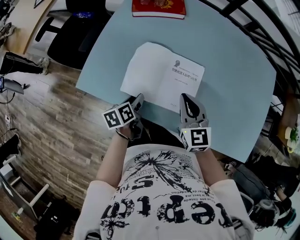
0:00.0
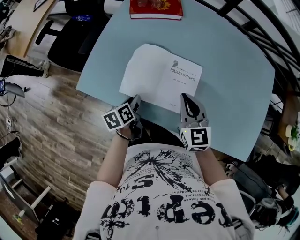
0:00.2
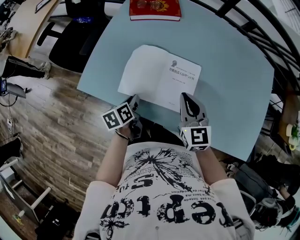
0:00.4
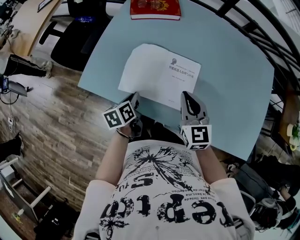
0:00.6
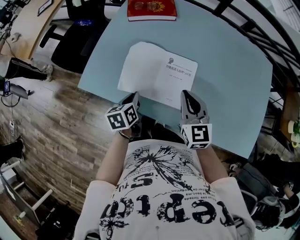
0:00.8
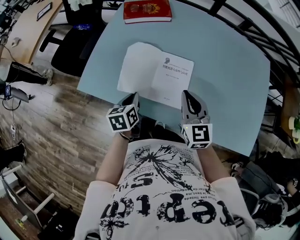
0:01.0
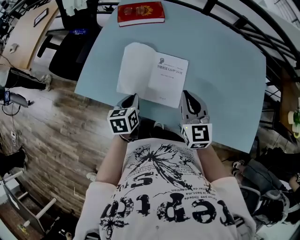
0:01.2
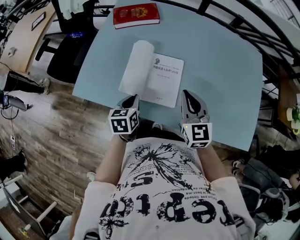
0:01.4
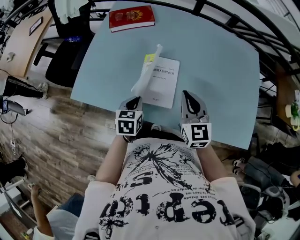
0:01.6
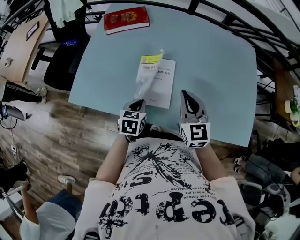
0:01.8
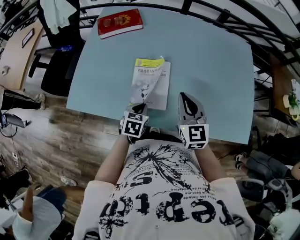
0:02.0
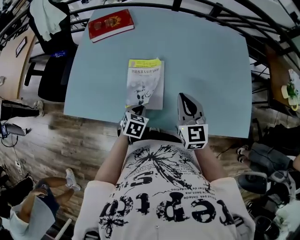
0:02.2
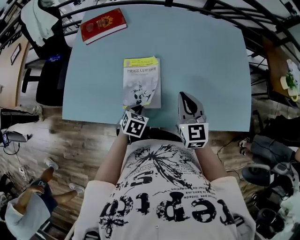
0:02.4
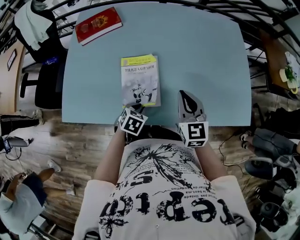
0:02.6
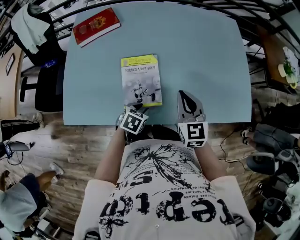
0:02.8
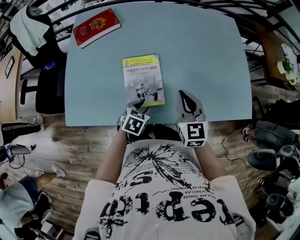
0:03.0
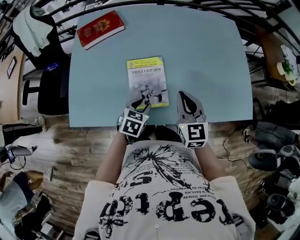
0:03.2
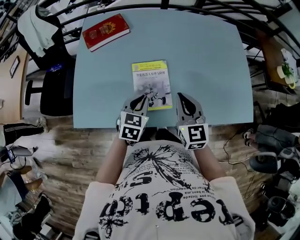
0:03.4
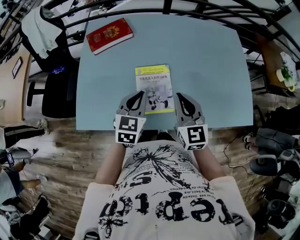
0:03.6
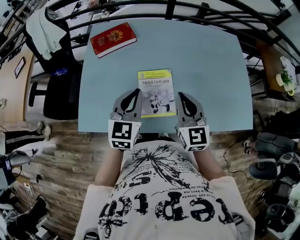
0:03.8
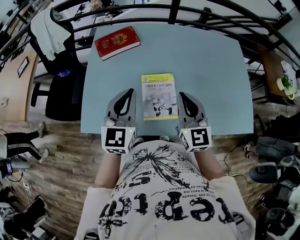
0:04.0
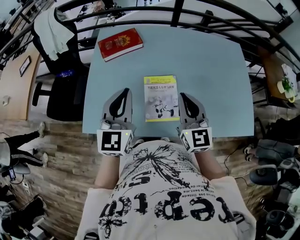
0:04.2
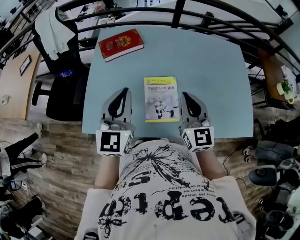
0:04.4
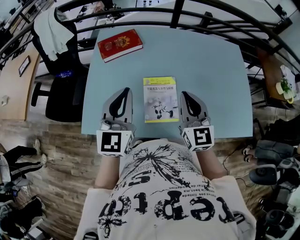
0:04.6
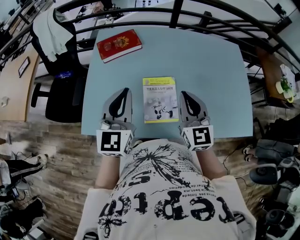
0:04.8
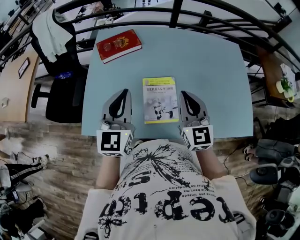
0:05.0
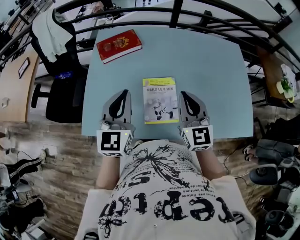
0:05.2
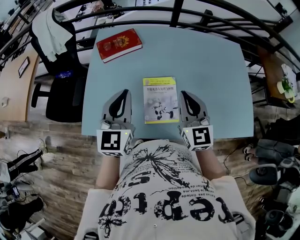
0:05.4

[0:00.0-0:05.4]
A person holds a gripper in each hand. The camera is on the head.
0:00.0 to 0:01.4: The left gripper shifts about 10 cm upward and to the right, turns by roughly 30 degrees, and closes up, while the right gripper travels to the right by approximately 10 cm.
0:01.4 to 0:02.8: The right gripper changes place by about 5 cm. The left gripper changes place by approximately 15 cm, rotates about 50 degrees, and opens its fingers.
0:02.8 to 0:04.0: The right gripper goes approximately 15 cm upward and to the left. The left gripper goes some 35 cm upward and to the left, points its fingers roughly 50 degrees further upward, and closes.
0:04.0 to 0:05.4: The grippers make only small movements.

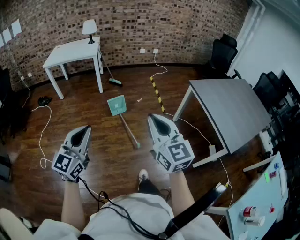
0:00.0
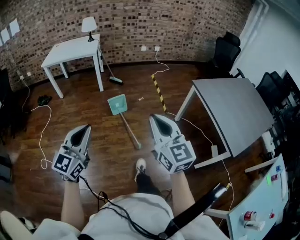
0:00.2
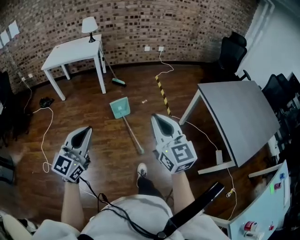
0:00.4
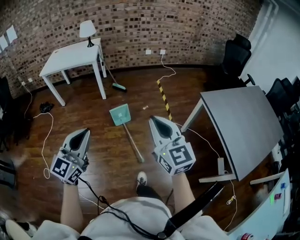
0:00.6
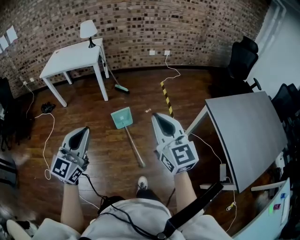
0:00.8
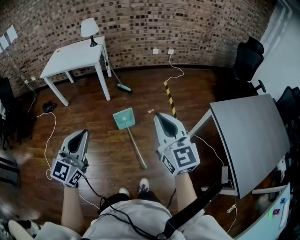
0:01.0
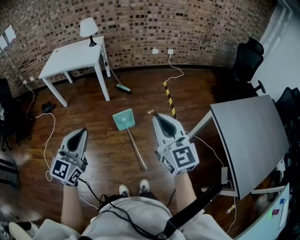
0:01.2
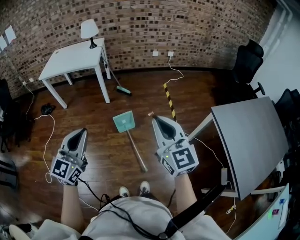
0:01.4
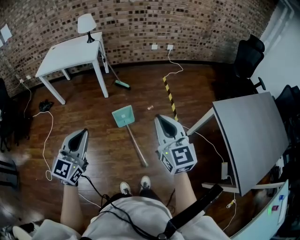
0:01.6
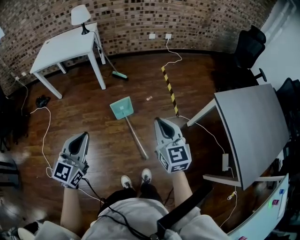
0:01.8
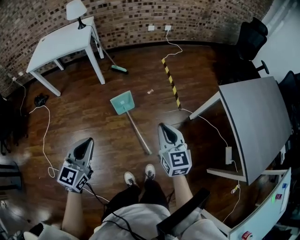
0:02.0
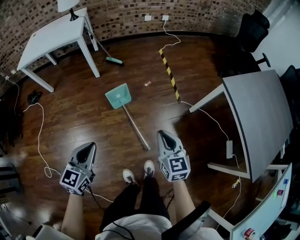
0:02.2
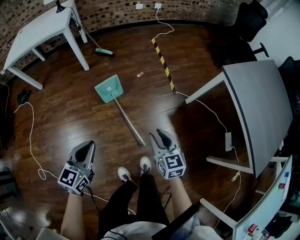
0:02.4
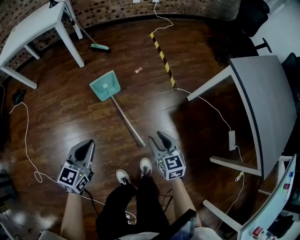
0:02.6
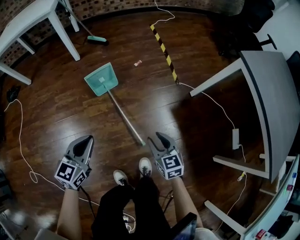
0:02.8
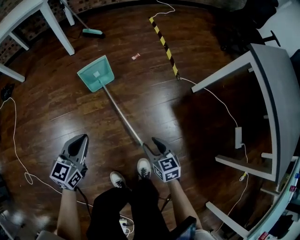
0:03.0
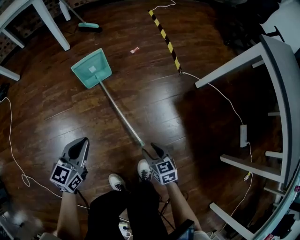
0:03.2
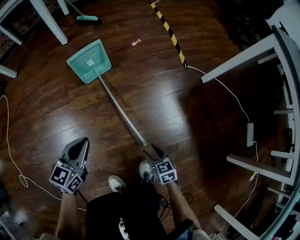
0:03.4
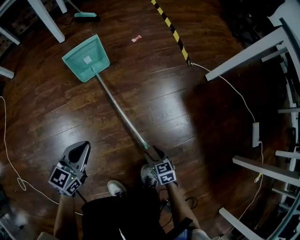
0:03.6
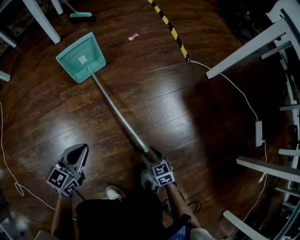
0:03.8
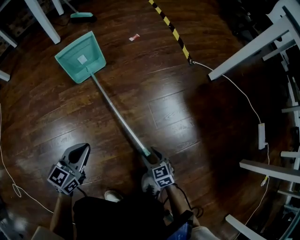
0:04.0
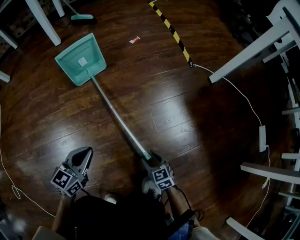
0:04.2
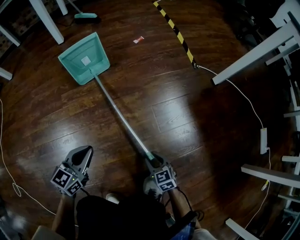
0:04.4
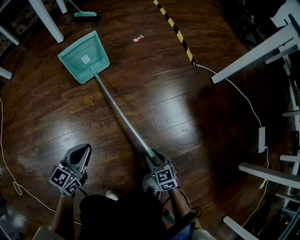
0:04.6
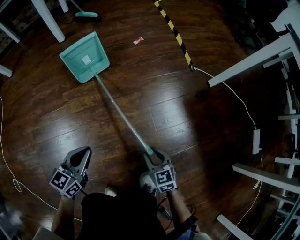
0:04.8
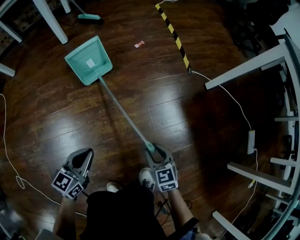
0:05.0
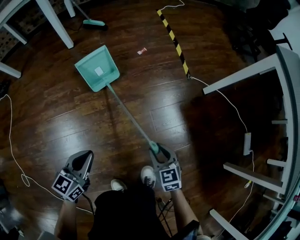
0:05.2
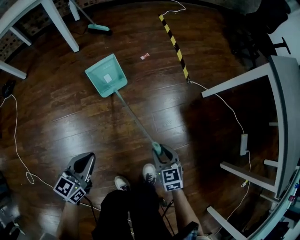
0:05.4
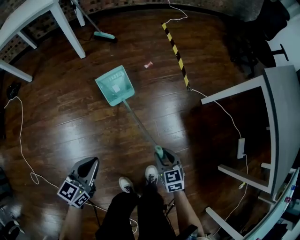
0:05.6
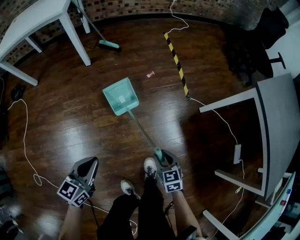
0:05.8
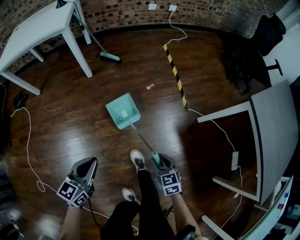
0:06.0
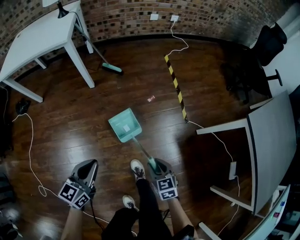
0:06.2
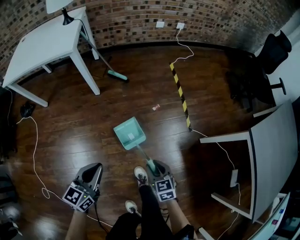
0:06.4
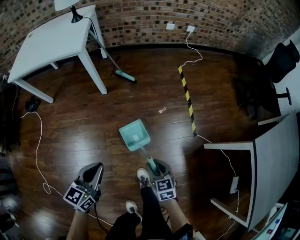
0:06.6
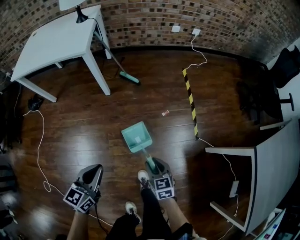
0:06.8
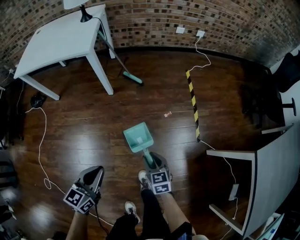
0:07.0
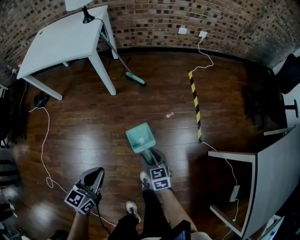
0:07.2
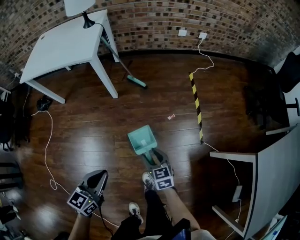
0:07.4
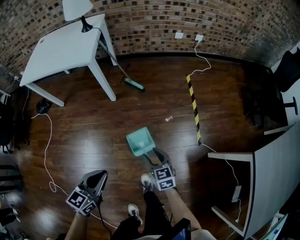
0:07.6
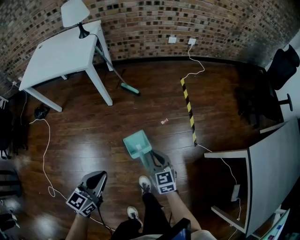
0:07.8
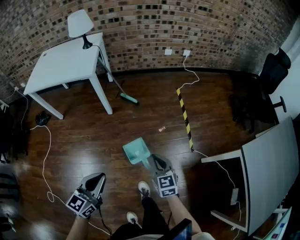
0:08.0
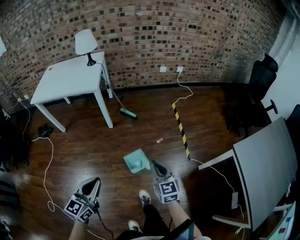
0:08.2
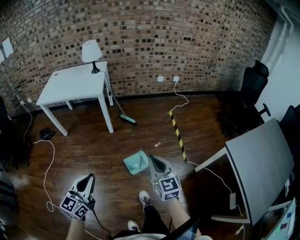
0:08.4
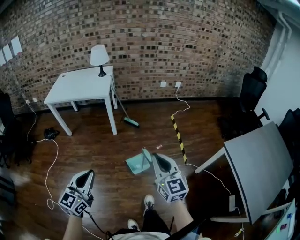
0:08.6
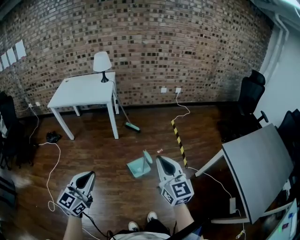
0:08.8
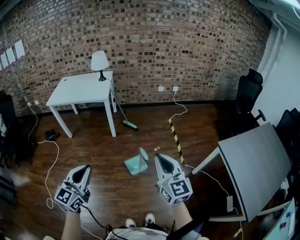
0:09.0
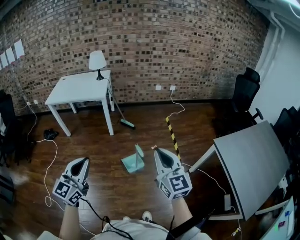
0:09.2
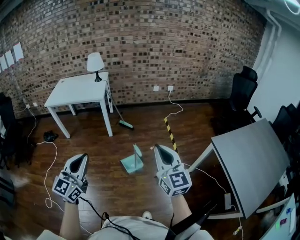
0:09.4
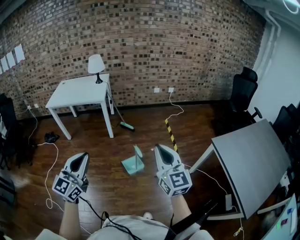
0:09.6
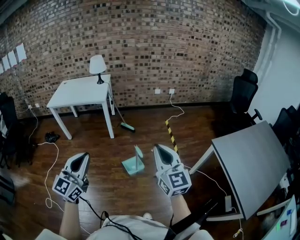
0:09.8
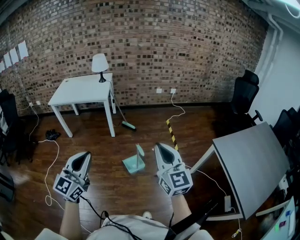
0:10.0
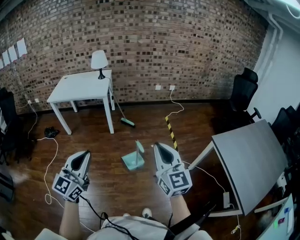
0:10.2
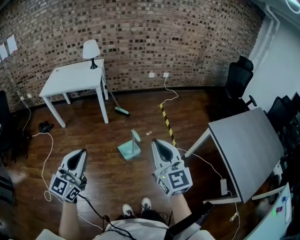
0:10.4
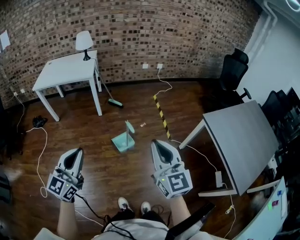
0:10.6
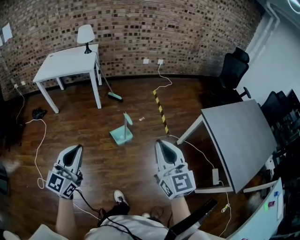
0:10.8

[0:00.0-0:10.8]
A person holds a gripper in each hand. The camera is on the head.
0:00.0 to 0:01.6: Both grippers move forward, about 35 cm.
0:01.6 to 0:03.0: The grippers both shift downward by some 60 cm. The right gripper points its fingers roughly 40 degrees further downward, and opens. The left gripper turns by about 30 degrees.
0:03.0 to 0:04.6: The two grippers go roughly 30 cm downward.
0:04.6 to 0:06.2: The left gripper travels upward by some 50 cm. The right gripper is displaced upward and forward by roughly 50 cm.
0:06.2 to 0:07.8: The right gripper moves forward and upward, about 20 cm, and closes up; the left gripper heads upward, covering some 10 cm.
0:07.8 to 0:09.2: The two grippers go approximately 40 cm upward and backward. The left gripper changes its angle by about 30 degrees, while the right gripper tilts its fingers about 30 degrees upward.
0:09.2 to 0:10.8: Both grippers travel together backward, about 10 cm.

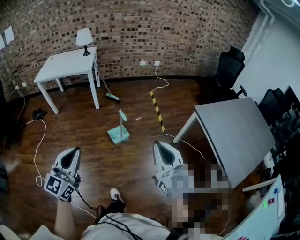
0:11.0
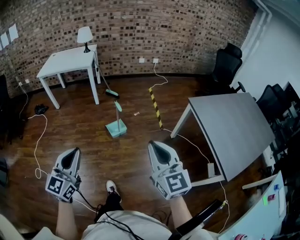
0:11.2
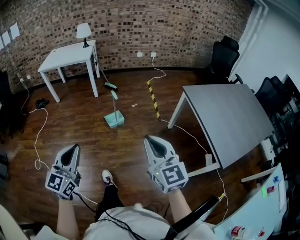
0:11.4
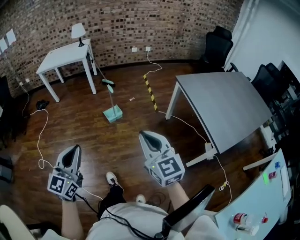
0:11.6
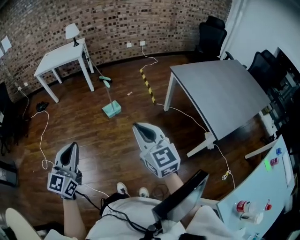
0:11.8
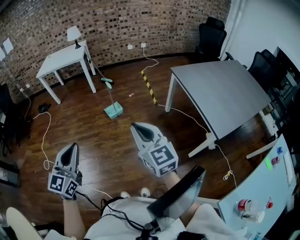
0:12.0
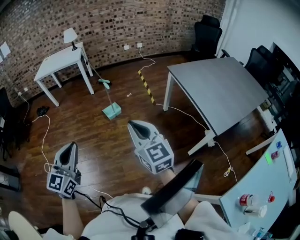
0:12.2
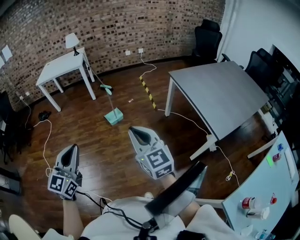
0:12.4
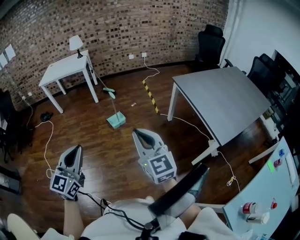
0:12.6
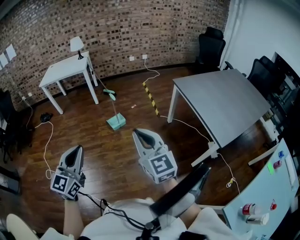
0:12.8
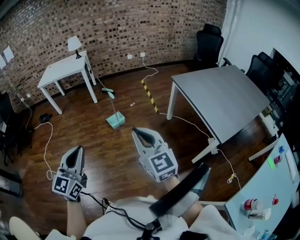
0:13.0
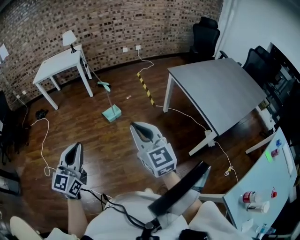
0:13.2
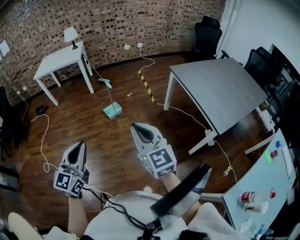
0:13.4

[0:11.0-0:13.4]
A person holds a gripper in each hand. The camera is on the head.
0:11.0 to 0:12.2: The right gripper is displaced backward by about 25 cm. The left gripper goes roughly 35 cm backward and to the right.
0:12.2 to 0:13.4: The grippers move only a little.

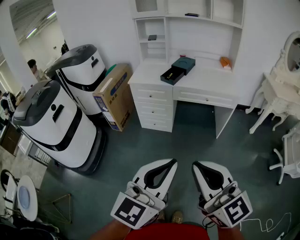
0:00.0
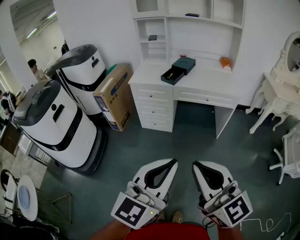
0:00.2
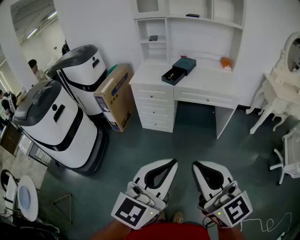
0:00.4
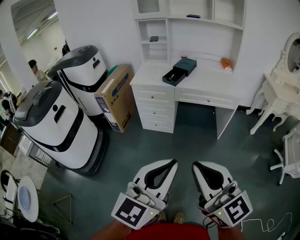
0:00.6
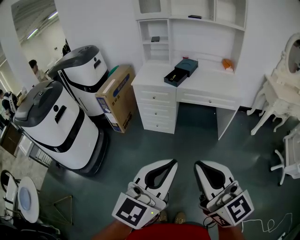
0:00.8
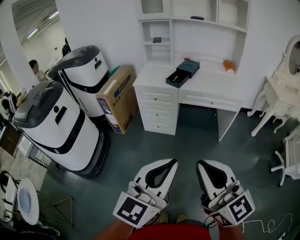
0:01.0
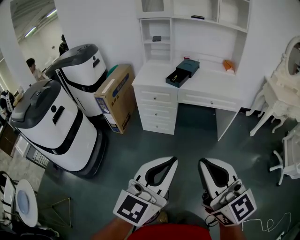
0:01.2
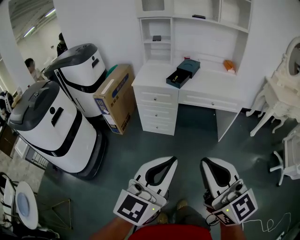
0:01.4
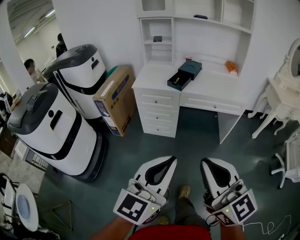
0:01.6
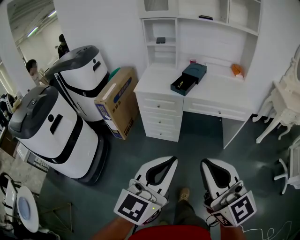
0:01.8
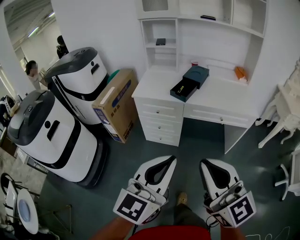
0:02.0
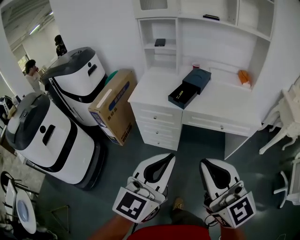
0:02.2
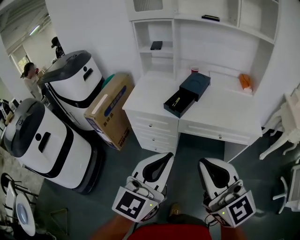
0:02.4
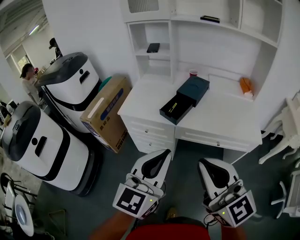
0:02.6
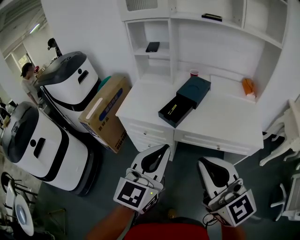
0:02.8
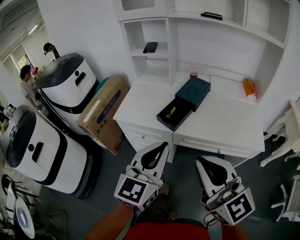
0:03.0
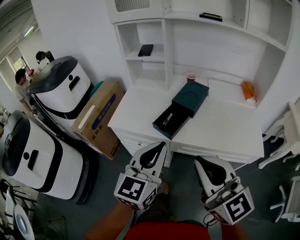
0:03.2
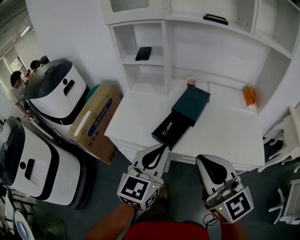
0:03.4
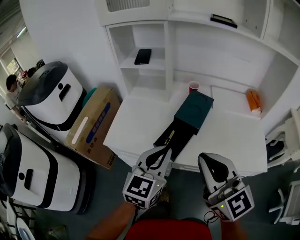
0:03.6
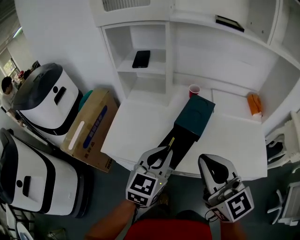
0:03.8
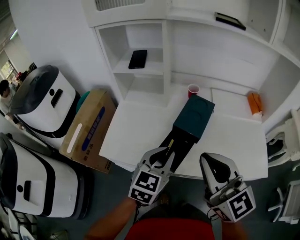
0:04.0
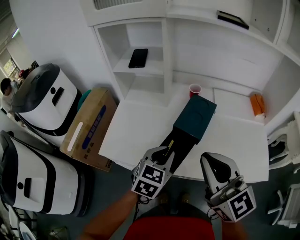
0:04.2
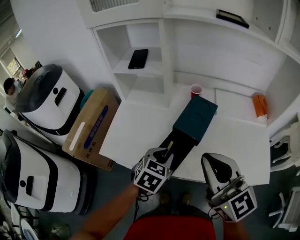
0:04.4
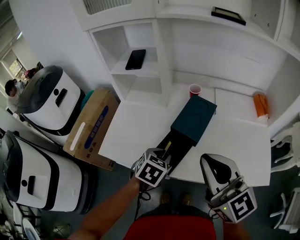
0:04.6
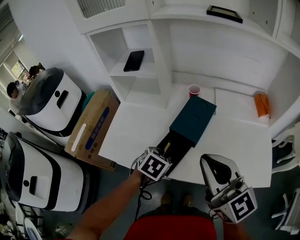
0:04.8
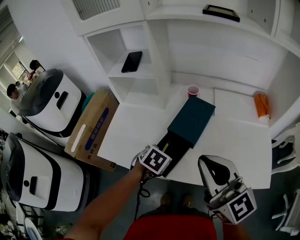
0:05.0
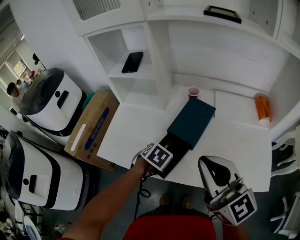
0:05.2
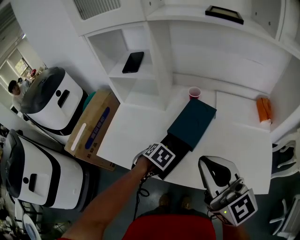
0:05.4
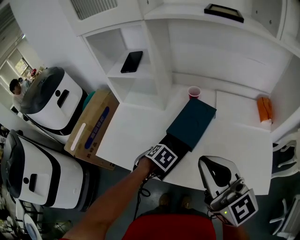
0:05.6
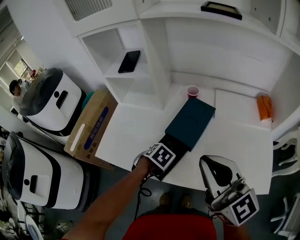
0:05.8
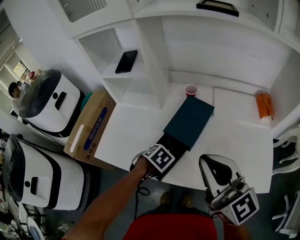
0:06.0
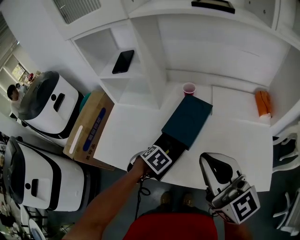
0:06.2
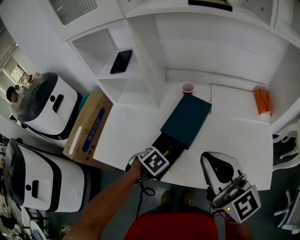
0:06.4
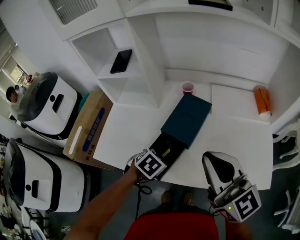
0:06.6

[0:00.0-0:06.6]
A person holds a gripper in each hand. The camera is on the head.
0:00.0 to 0:01.6: The right gripper heads forward, covering about 10 cm. The left gripper goes some 10 cm forward and to the left.
0:01.6 to 0:03.2: Both grippers are carried forward, roughly 50 cm.
0:03.2 to 0:05.0: The left gripper heads forward and downward, covering some 35 cm, points its fingers some 60 degrees further downward, and opens up, while the right gripper shifts roughly 25 cm forward.
0:05.0 to 0:06.6: The right gripper ends up approximately 5 cm from where it was.
